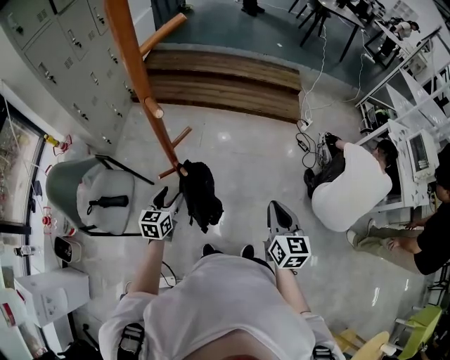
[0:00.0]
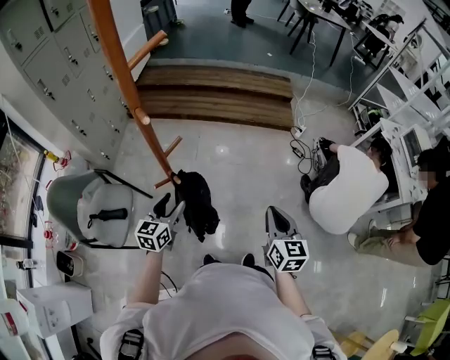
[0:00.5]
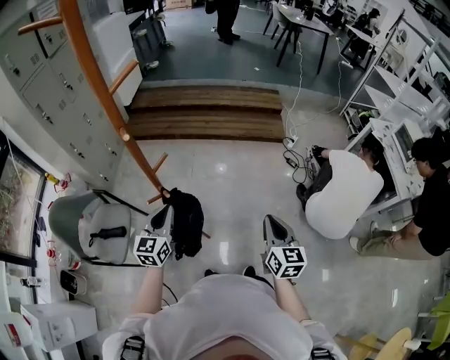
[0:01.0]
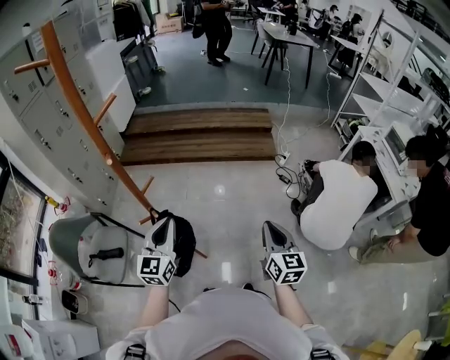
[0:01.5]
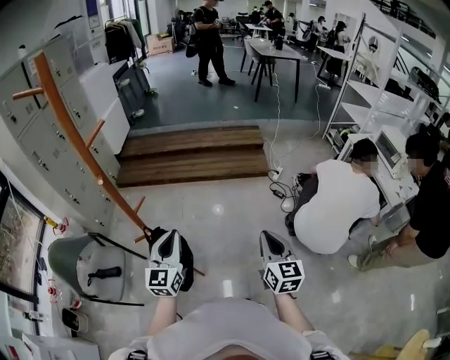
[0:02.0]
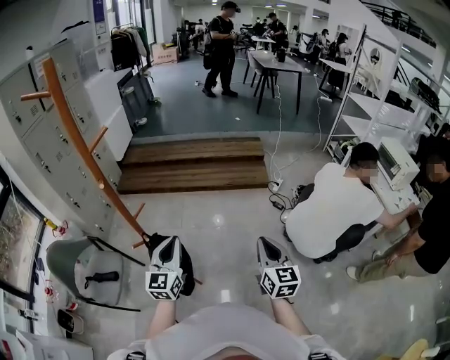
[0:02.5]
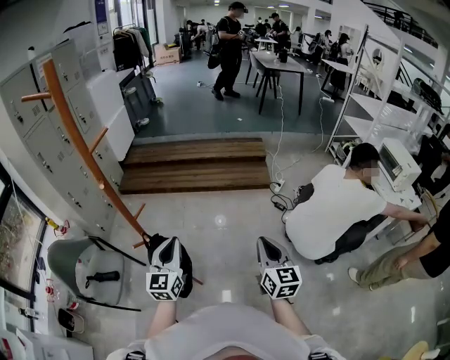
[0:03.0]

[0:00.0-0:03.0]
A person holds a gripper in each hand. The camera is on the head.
0:00.0 to 0:01.5: The left gripper is displaced upward and to the right by roughly 25 cm, swivels about 30 degrees, and closes; the right gripper moves to the right and upward, approximately 15 cm.
0:01.5 to 0:03.0: The left gripper is displaced to the right by roughly 5 cm, while the right gripper changes place by about 5 cm.

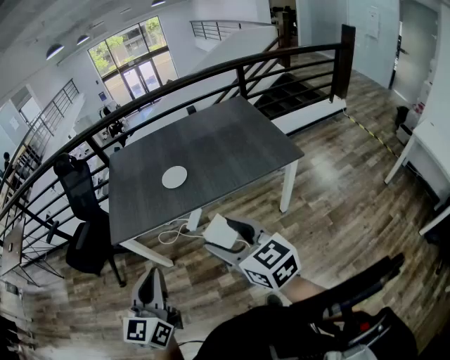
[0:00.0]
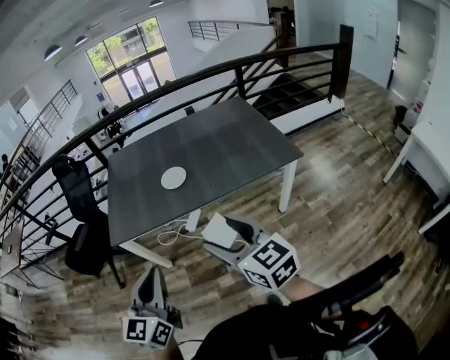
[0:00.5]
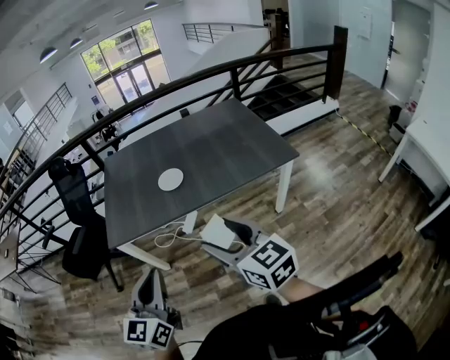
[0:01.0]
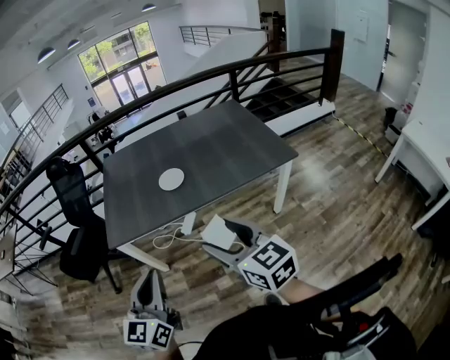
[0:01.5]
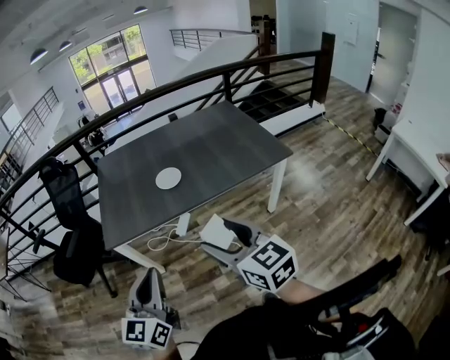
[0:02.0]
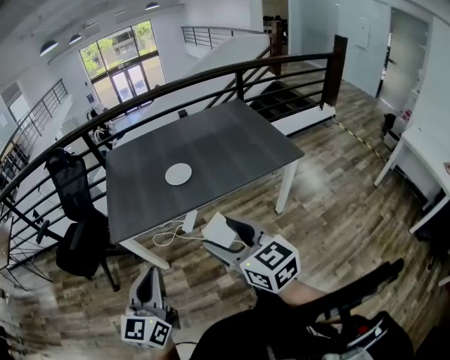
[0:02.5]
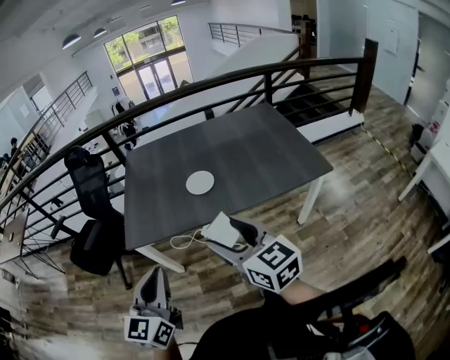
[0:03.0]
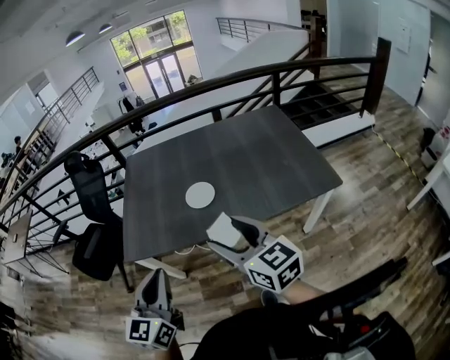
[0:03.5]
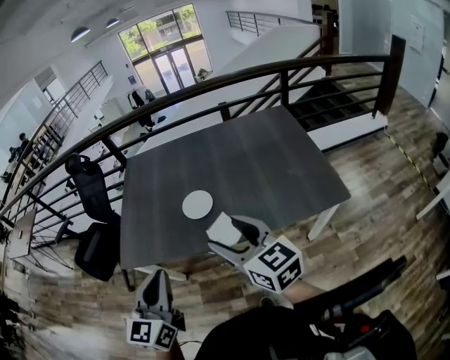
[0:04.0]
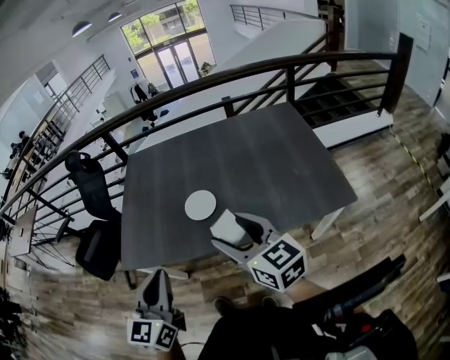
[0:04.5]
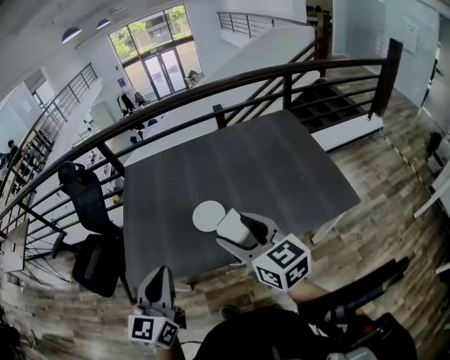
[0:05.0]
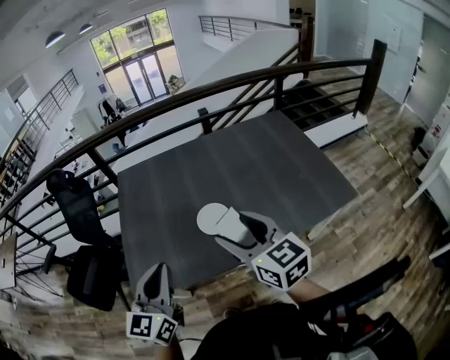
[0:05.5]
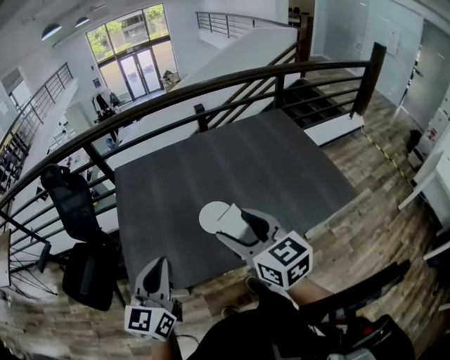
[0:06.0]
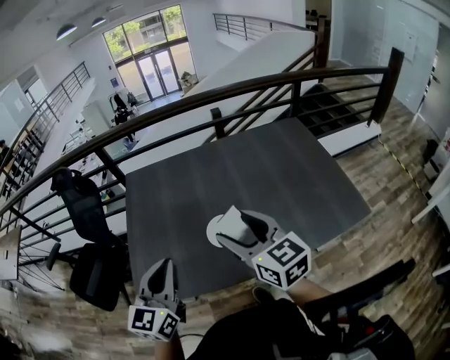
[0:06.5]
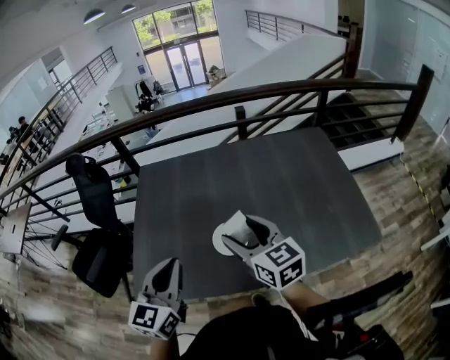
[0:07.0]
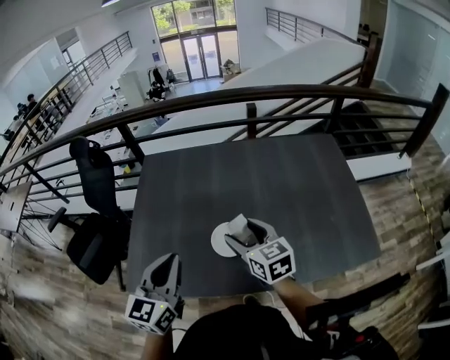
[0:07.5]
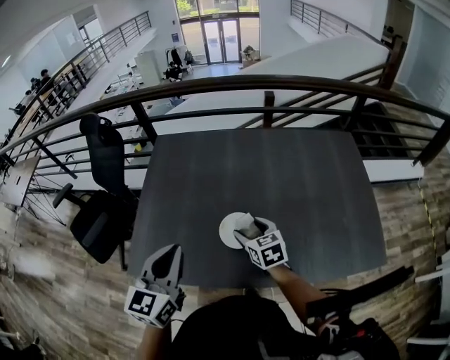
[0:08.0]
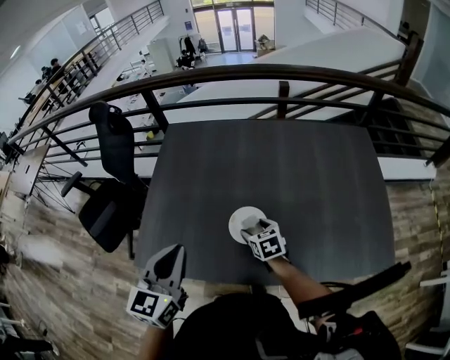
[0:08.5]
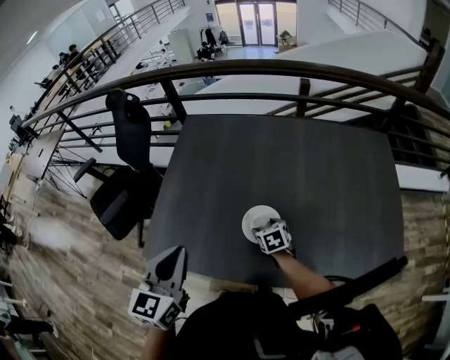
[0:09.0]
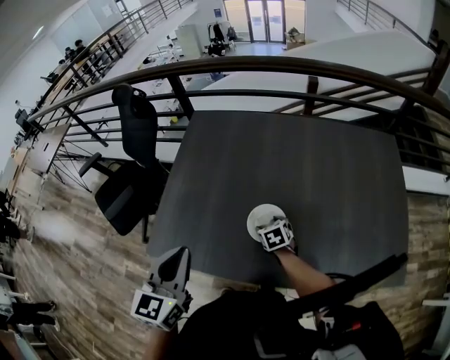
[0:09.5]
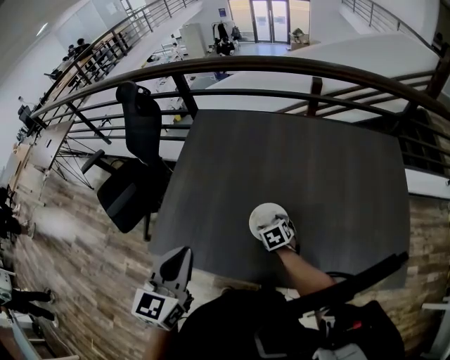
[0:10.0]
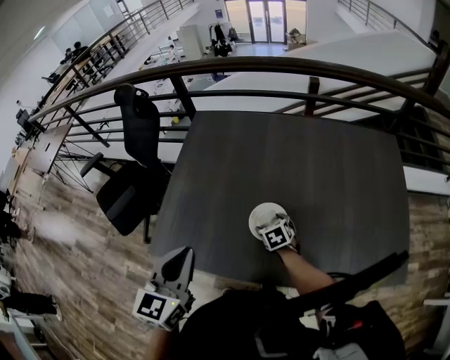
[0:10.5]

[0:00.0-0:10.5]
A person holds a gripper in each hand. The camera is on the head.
0:00.0 to 0:02.0: The grippers both shift to the left by some 5 cm.
0:02.0 to 0:04.0: The right gripper is displaced forward by about 30 cm, while the left gripper shifts about 25 cm forward and to the right.
0:04.0 to 0:06.5: The grippers both shift forward and to the left by some 25 cm.
0:06.5 to 0:08.5: The left gripper shifts by some 5 cm, while the right gripper goes about 35 cm downward and forward, and tilts its fingers about 30 degrees downward.
0:08.5 to 0:10.5: The right gripper goes approximately 5 cm downward.

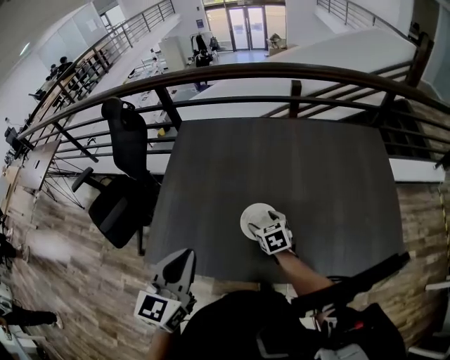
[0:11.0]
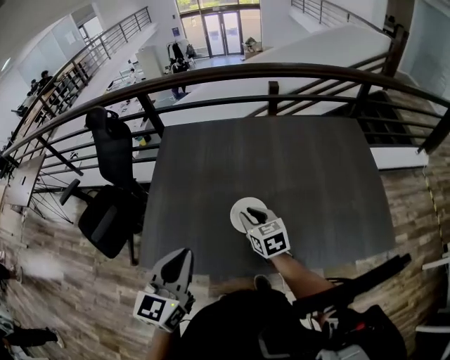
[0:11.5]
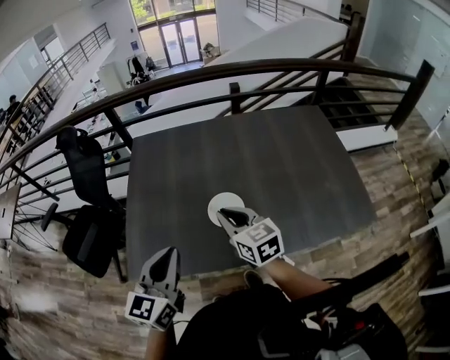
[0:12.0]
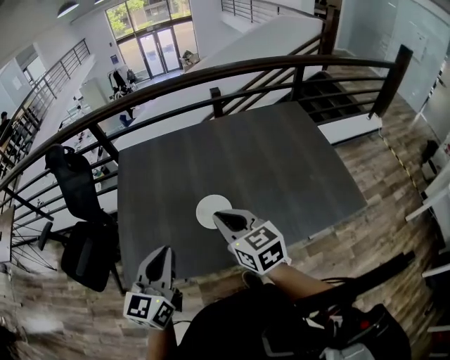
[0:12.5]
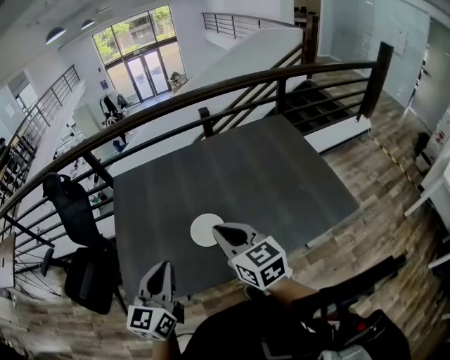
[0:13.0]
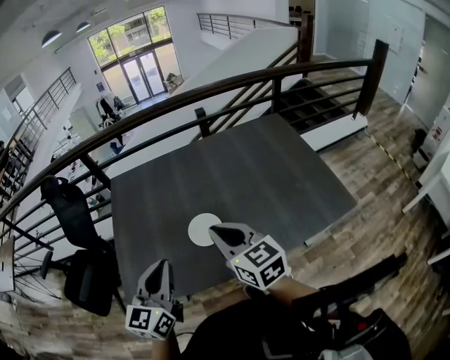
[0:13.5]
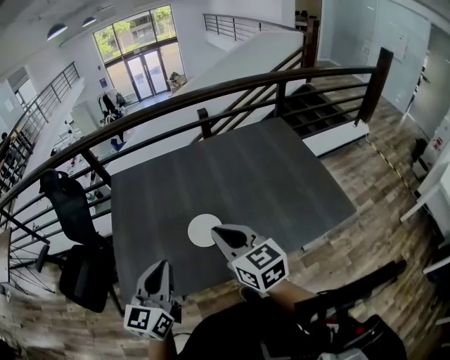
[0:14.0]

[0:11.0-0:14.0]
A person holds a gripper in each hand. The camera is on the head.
0:11.0 to 0:12.5: The right gripper is displaced upward and backward by approximately 25 cm, swivels some 30 degrees, and closes.
0:12.5 to 0:14.0: The right gripper changes place by roughly 5 cm.

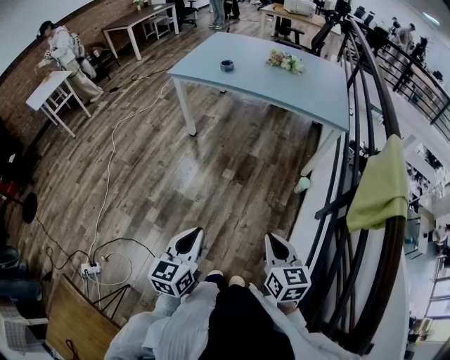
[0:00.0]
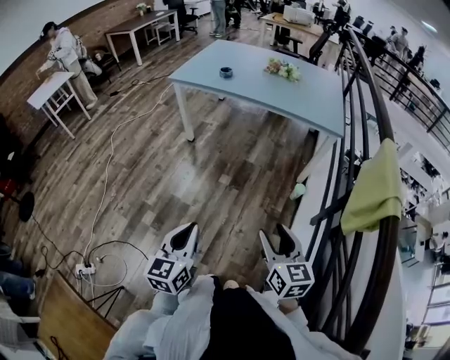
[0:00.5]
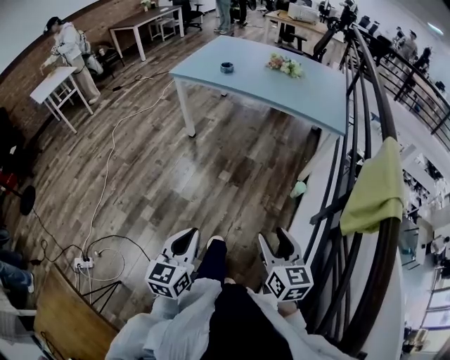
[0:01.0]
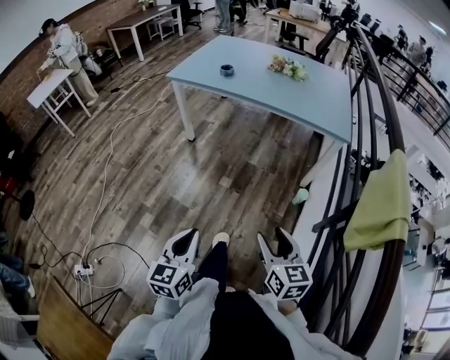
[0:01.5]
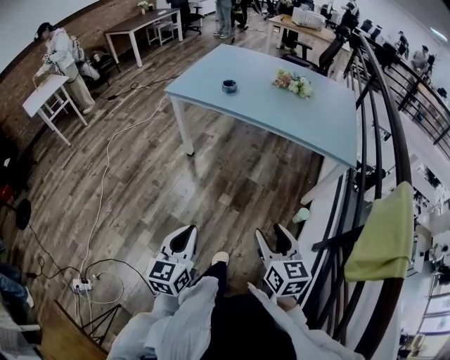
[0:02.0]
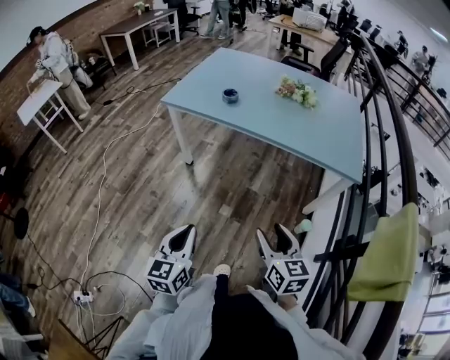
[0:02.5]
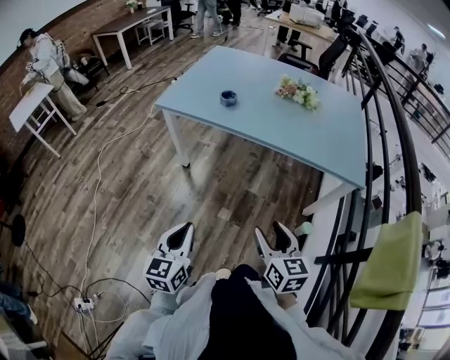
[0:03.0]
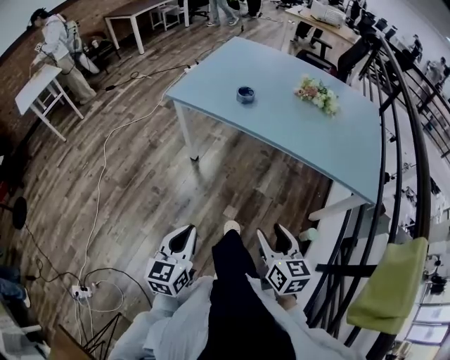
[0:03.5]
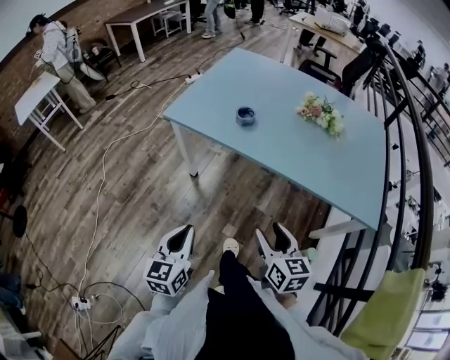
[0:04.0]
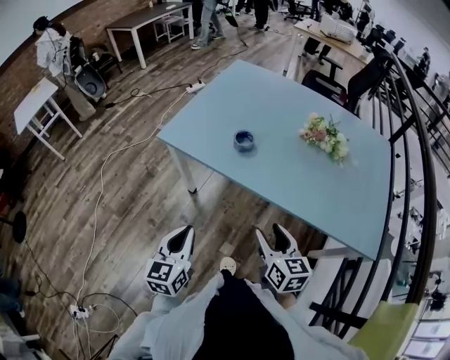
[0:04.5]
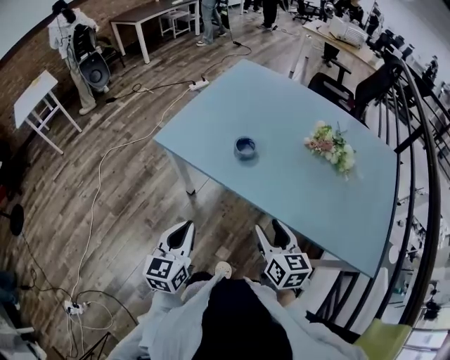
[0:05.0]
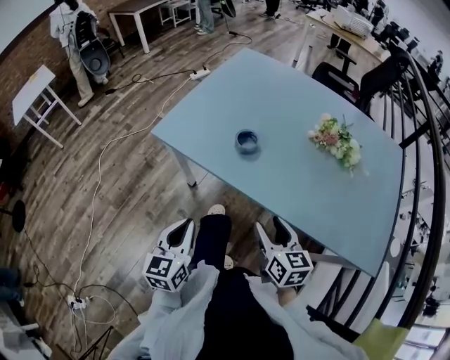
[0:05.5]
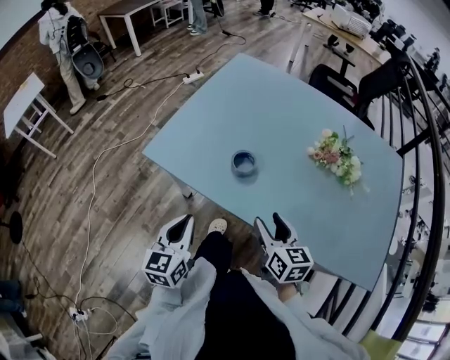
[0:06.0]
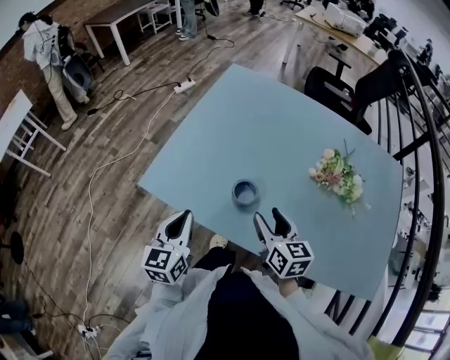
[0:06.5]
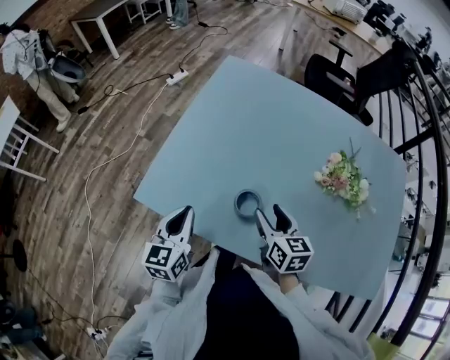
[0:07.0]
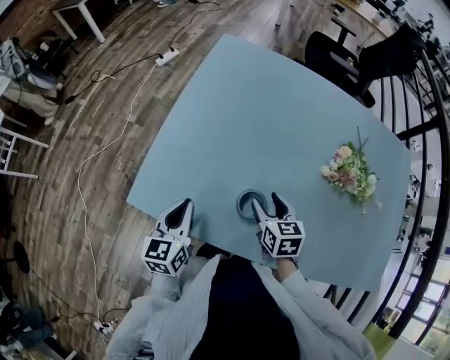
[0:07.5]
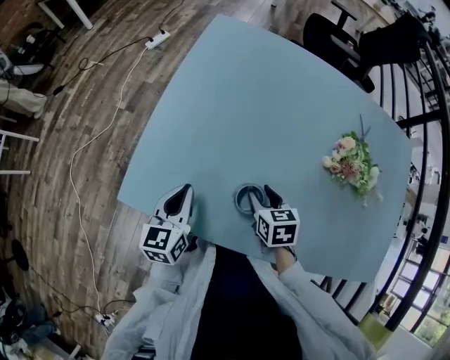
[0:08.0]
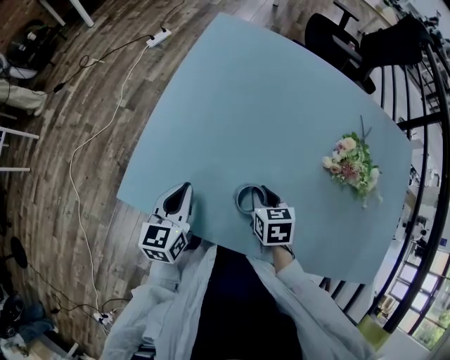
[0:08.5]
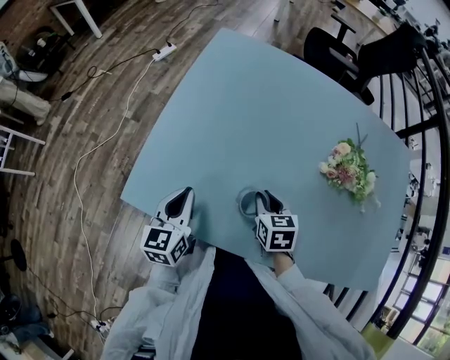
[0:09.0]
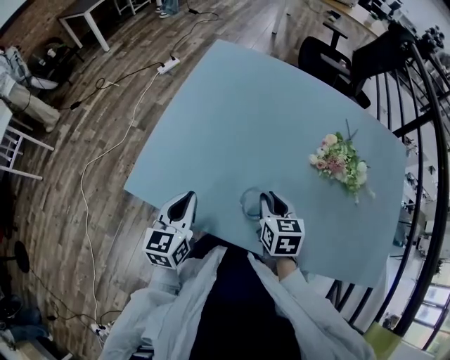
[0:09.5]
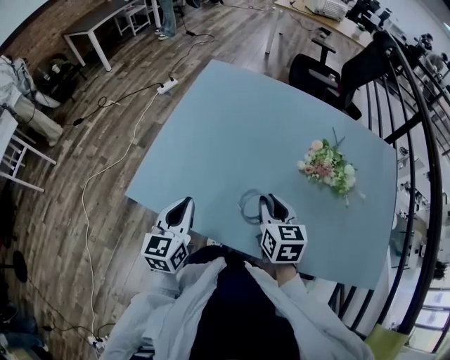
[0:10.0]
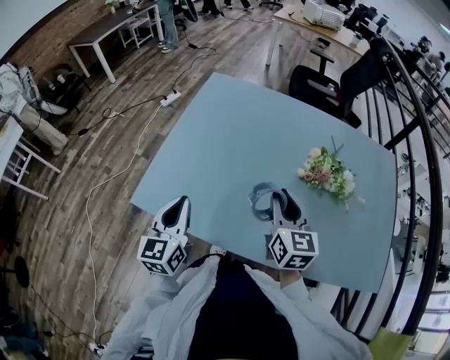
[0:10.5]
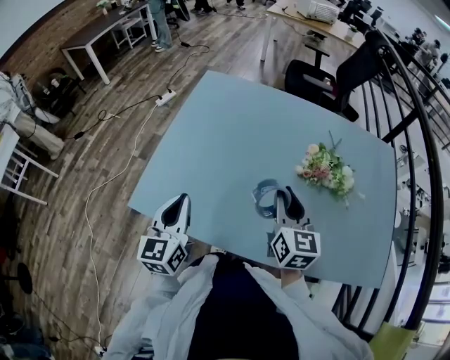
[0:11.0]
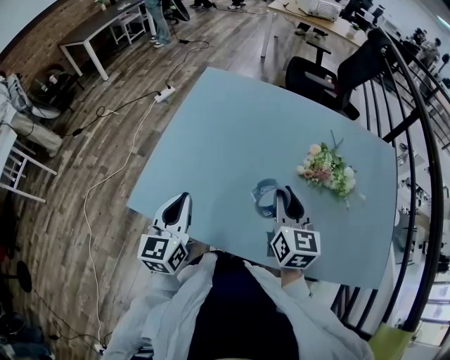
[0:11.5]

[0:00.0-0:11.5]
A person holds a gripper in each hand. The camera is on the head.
0:00.0 to 0:02.0: Both grippers travel together forward, approximately 20 cm. The right gripper opens up.
0:02.0 to 0:04.0: The grippers both shift forward by approximately 30 cm.
0:04.0 to 0:06.0: The two grippers go approximately 30 cm forward.
0:06.0 to 0:07.5: Both grippers travel together forward, approximately 20 cm.
0:07.5 to 0:09.5: The right gripper changes place by approximately 5 cm, and closes its fingers. The left gripper changes place by approximately 5 cm.
0:09.5 to 0:11.5: The right gripper travels upward by about 15 cm, and rotates roughly 30 degrees. Meanwhile the left gripper moves upward, roughly 10 cm.
